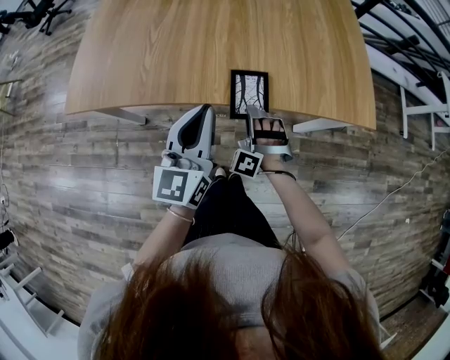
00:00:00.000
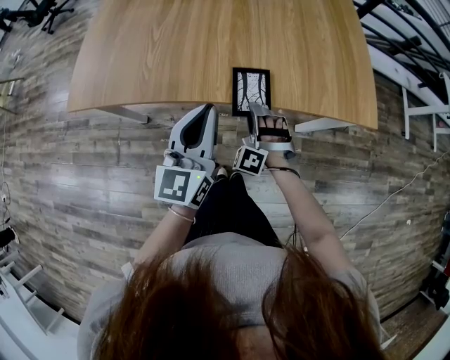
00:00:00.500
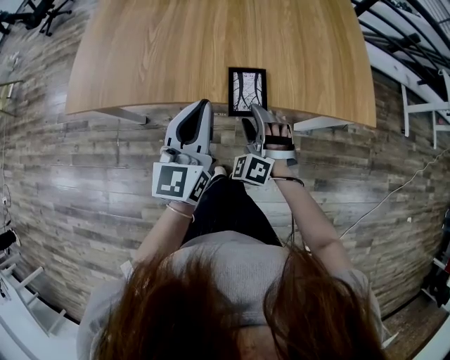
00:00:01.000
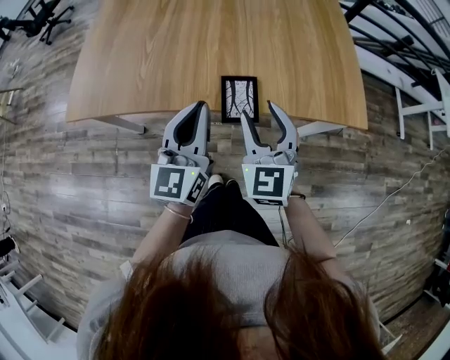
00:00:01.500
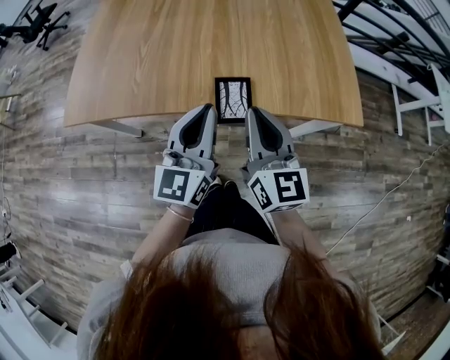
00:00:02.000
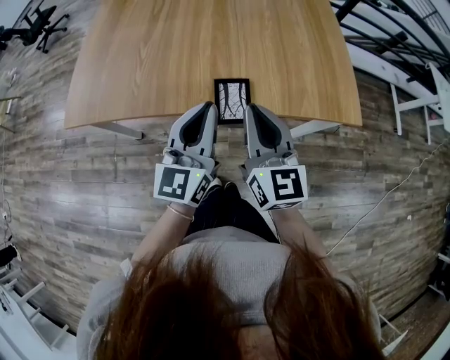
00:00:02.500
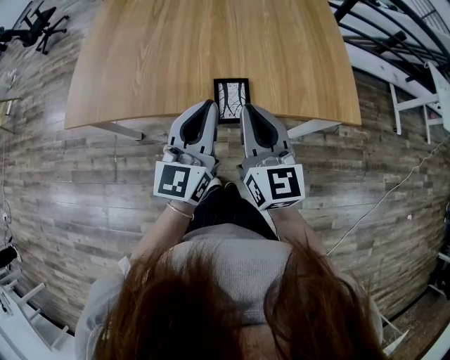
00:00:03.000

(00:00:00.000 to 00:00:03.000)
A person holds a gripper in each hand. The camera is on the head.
00:00:00.000 - 00:00:01.500: The right gripper travels upward by about 20 cm, rotates around the line of its fingers by some 60 degrees, clockwise from behind, and opens its fingers.
00:00:01.500 - 00:00:03.000: The right gripper rotates approximately 30 degrees, and closes its fingers.

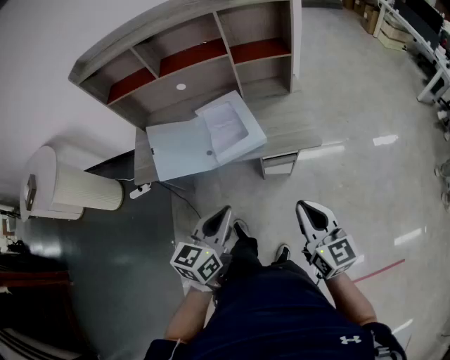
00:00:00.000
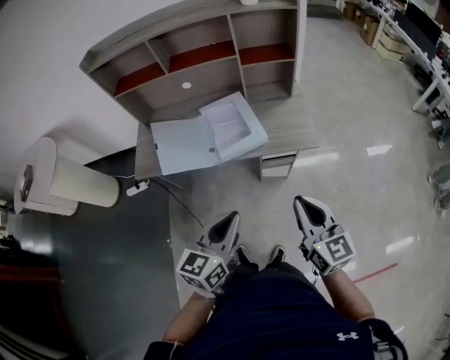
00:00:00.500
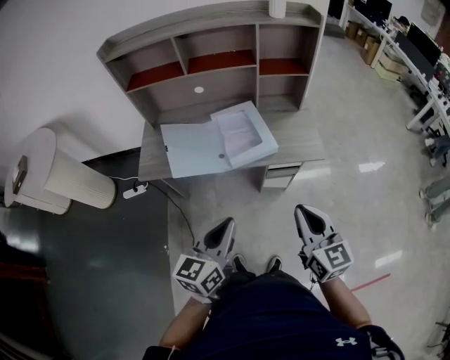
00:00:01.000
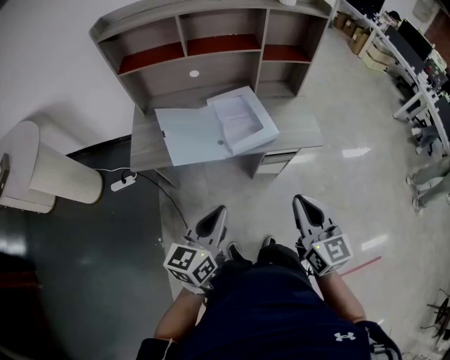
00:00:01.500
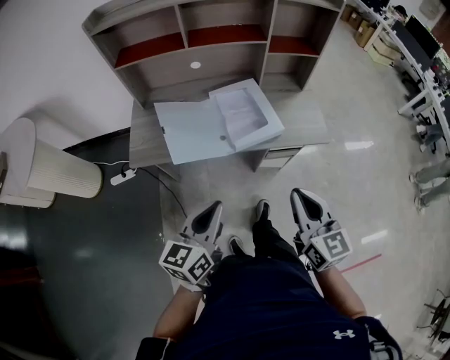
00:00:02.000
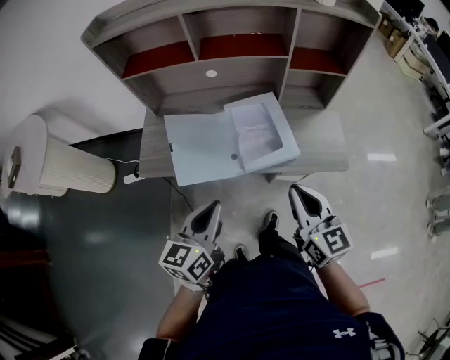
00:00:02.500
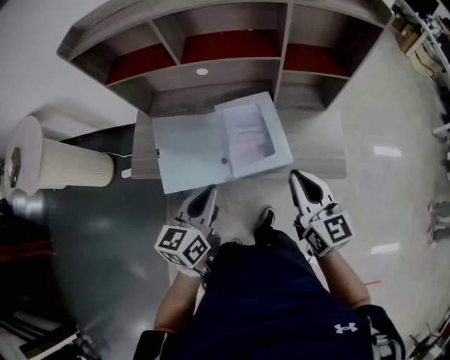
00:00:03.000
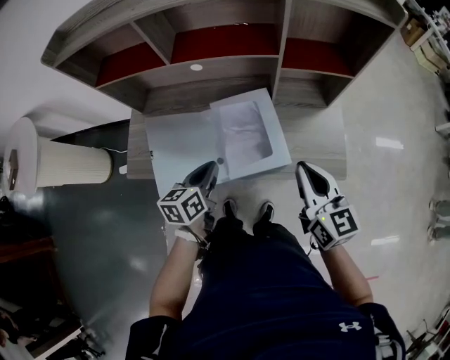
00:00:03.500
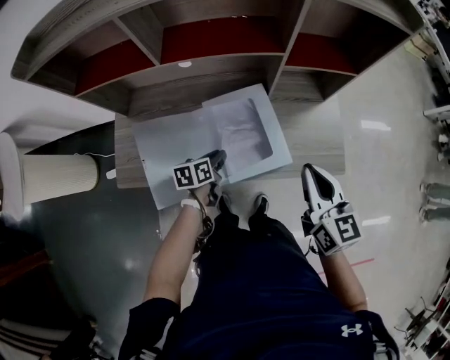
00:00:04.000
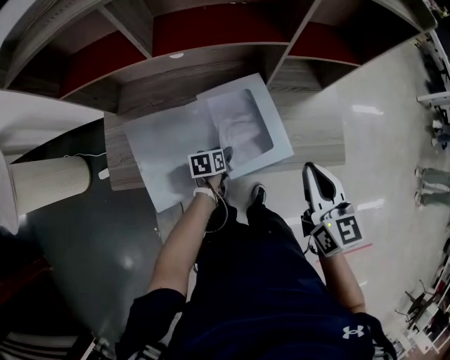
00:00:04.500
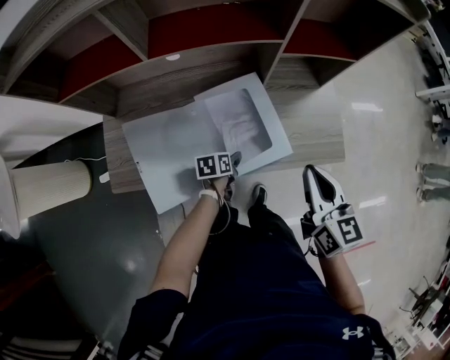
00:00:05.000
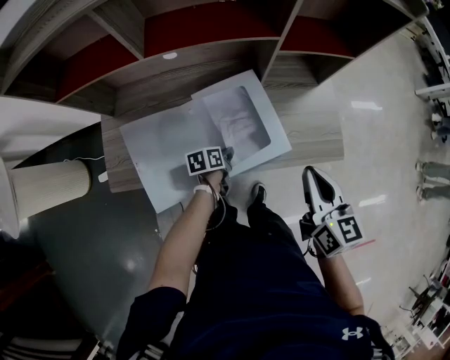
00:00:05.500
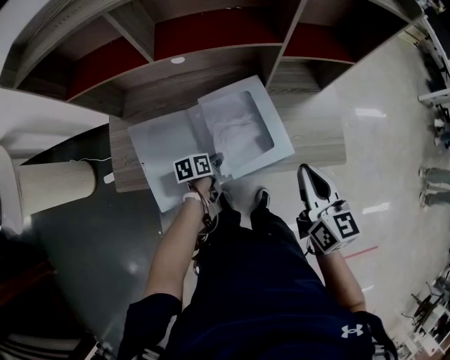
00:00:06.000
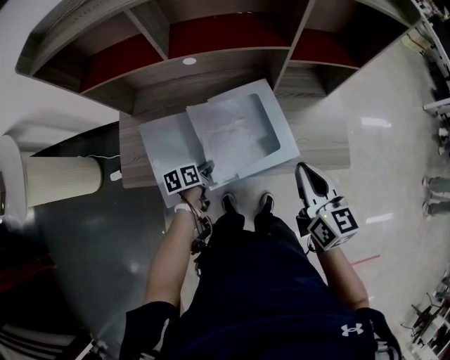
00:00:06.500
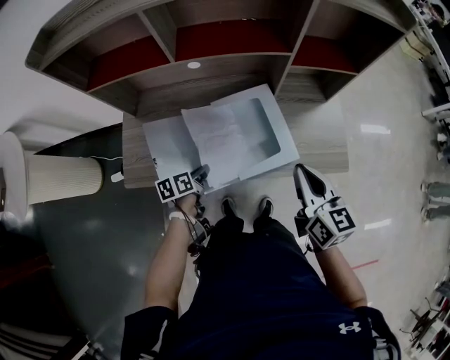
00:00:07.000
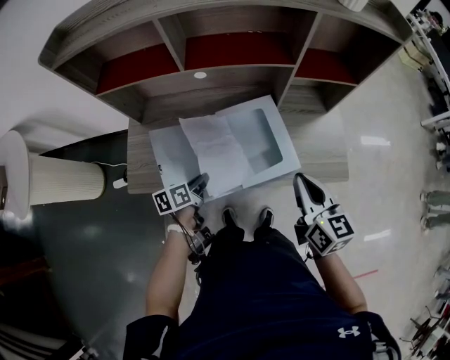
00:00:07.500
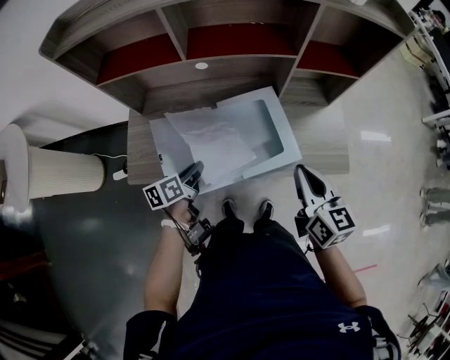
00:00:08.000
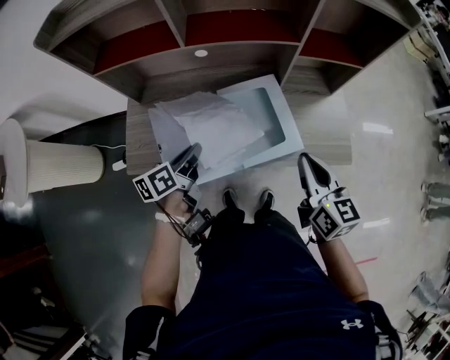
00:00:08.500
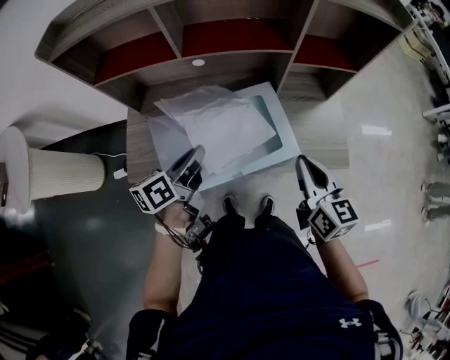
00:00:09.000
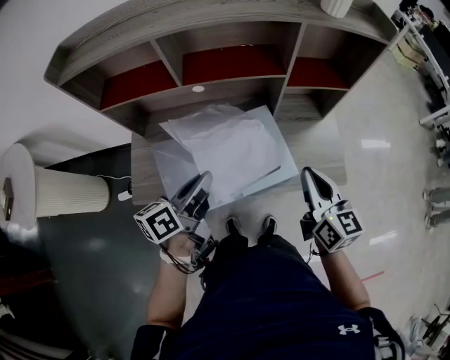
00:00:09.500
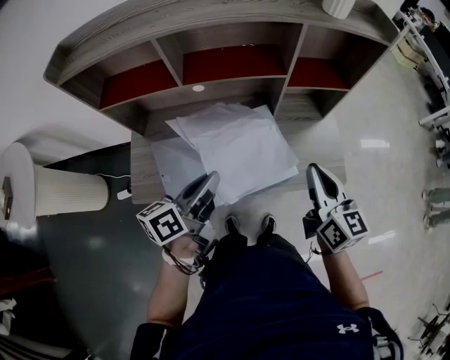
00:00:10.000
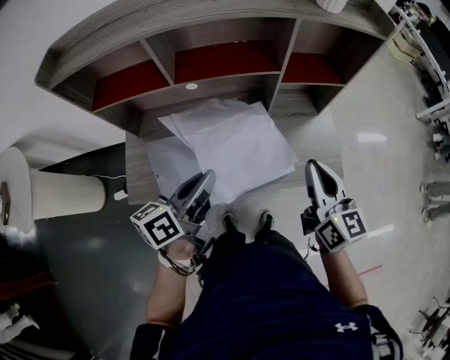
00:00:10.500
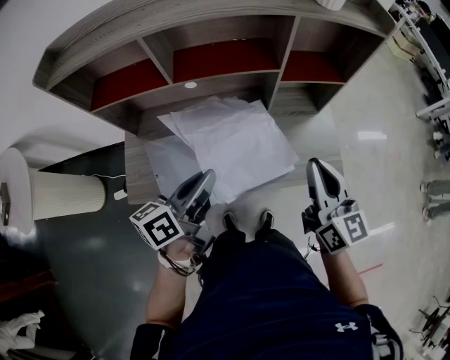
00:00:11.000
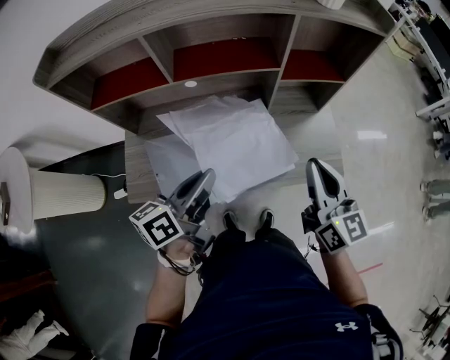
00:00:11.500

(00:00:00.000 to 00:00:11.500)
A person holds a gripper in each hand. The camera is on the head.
00:00:00.000 - 00:00:02.000: The two grippers go roughly 15 cm to the left.
00:00:02.000 - 00:00:04.000: The left gripper travels forward and downward by roughly 40 cm, and swivels about 40 degrees. The right gripper goes some 30 cm forward.
00:00:04.000 - 00:00:06.000: The left gripper moves downward, about 5 cm, and opens, then closes once more.
00:00:06.000 - 00:00:07.500: The left gripper moves upward, to the left and backward, some 15 cm.
00:00:07.500 - 00:00:09.500: The left gripper goes about 20 cm upward, and changes its angle by some 30 degrees. The right gripper shifts by some 5 cm.
00:00:09.500 - 00:00:11.500: There are only small adjustments of the grippers.

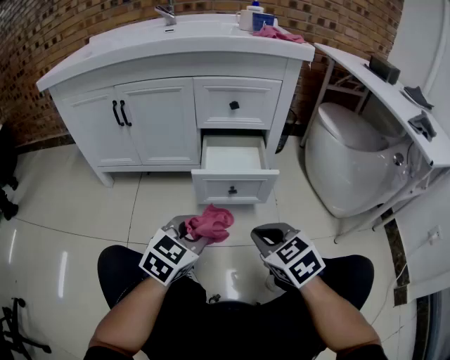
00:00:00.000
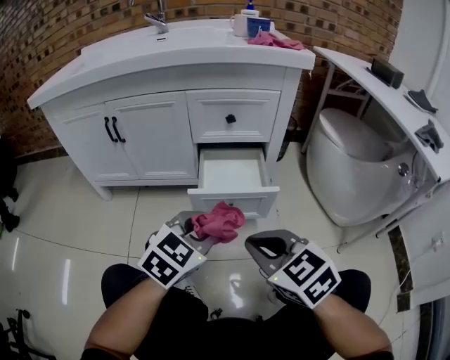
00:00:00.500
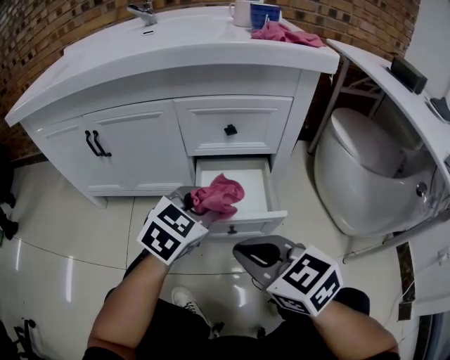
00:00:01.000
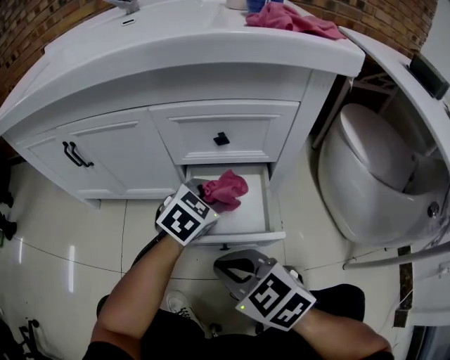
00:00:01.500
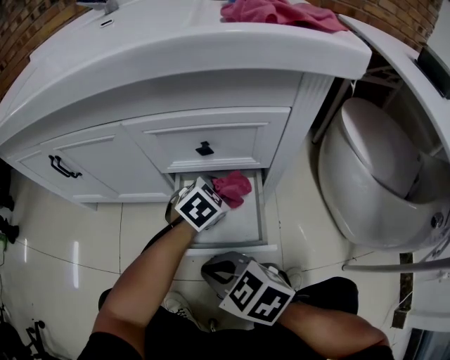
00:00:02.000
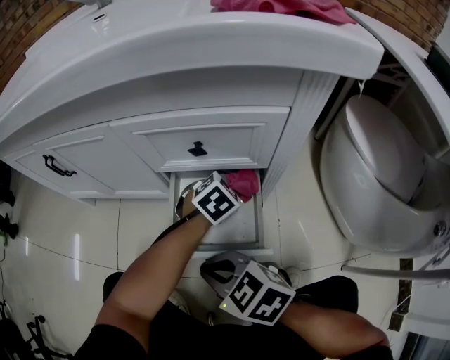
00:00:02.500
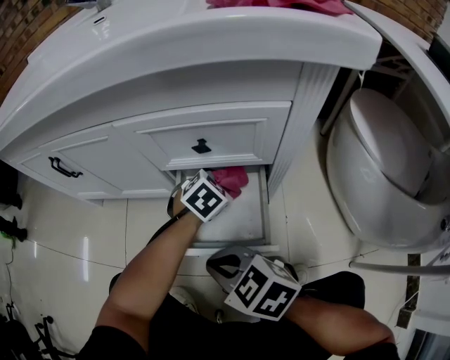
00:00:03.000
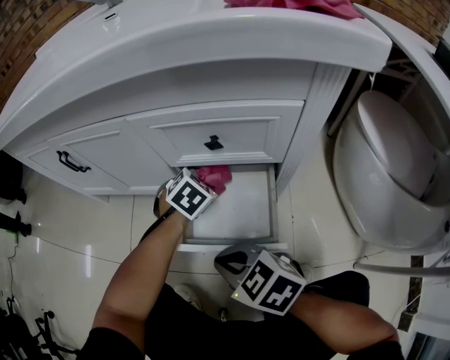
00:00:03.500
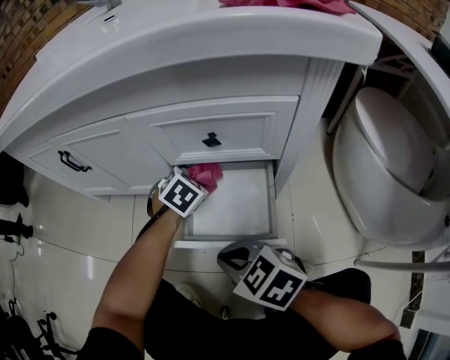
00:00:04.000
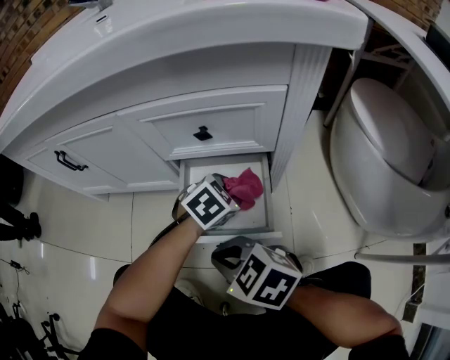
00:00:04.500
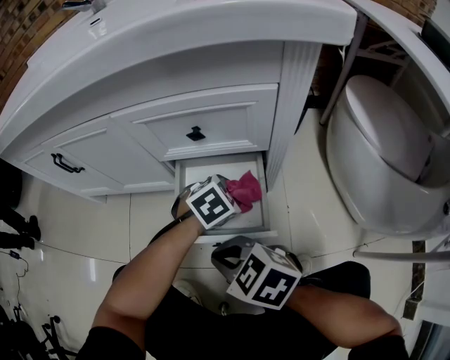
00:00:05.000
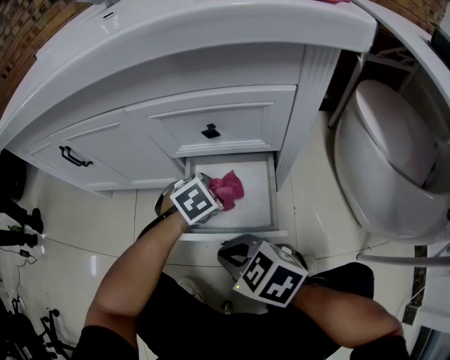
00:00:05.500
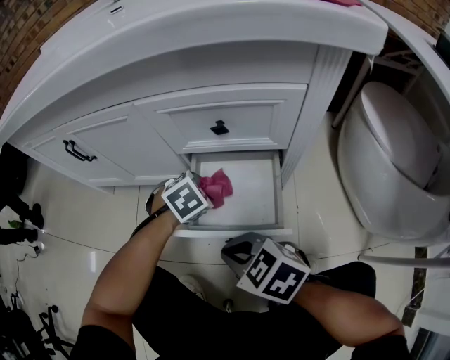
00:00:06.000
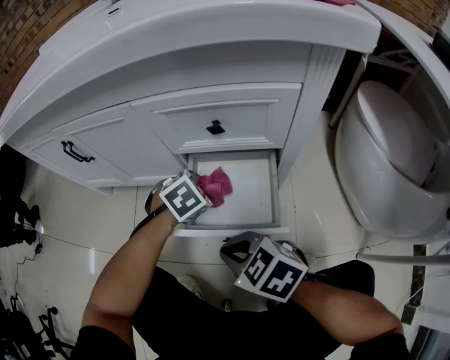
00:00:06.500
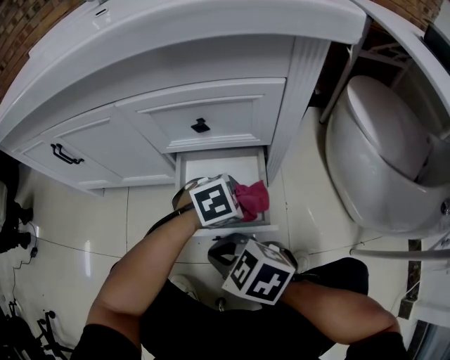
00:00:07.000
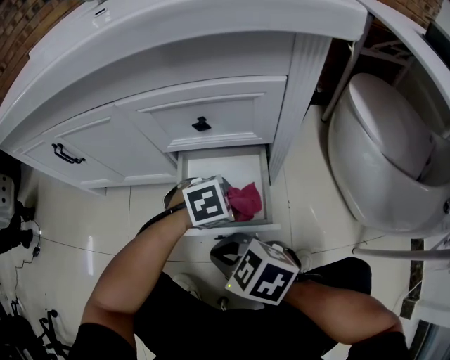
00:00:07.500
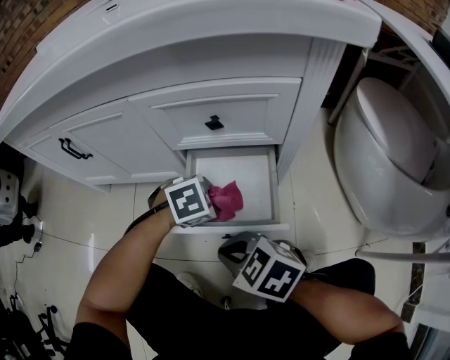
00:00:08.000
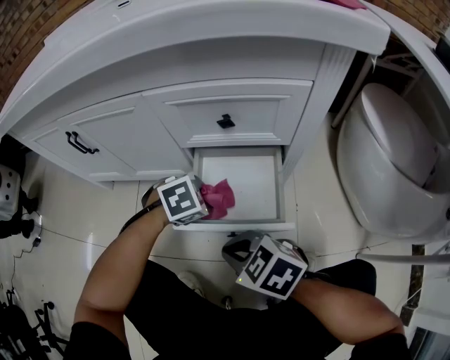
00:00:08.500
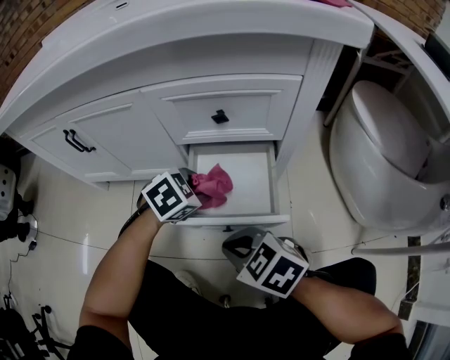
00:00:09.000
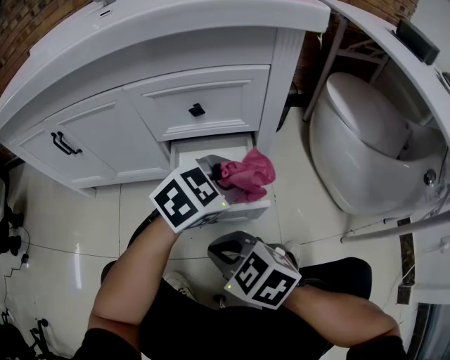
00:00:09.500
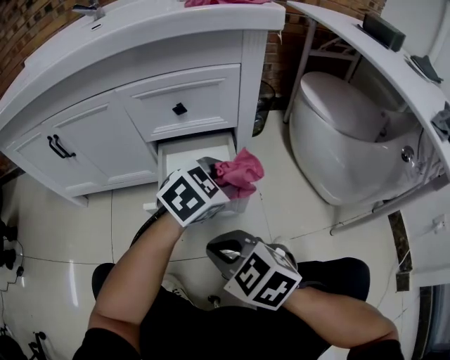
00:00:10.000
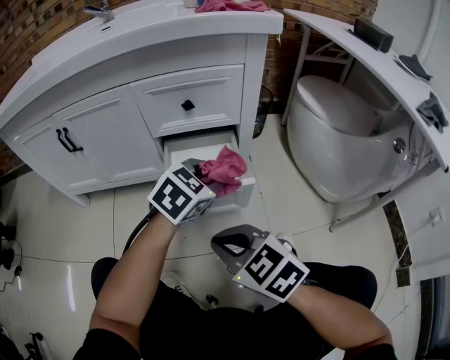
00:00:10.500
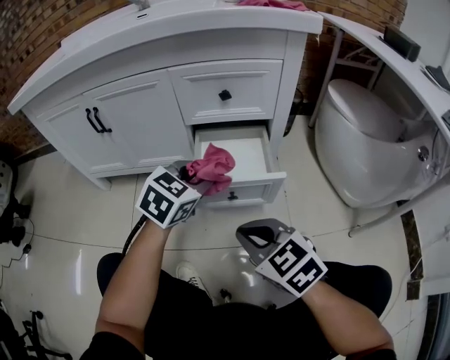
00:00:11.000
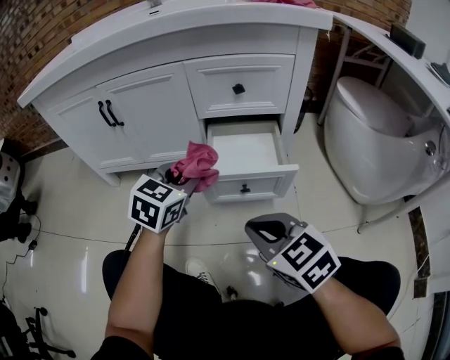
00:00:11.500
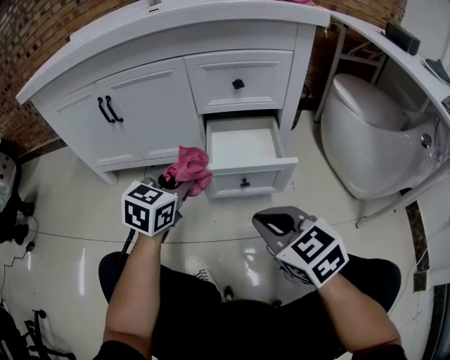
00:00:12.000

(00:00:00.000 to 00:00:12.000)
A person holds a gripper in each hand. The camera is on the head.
00:00:00.000 - 00:00:02.000: The right gripper goes roughly 15 cm forward, and rotates about 30 degrees. The left gripper goes some 35 cm forward and to the right, and rotates roughly 20 degrees.
00:00:02.000 - 00:00:04.000: The left gripper is displaced to the left and forward by approximately 10 cm.
00:00:08.000 - 00:00:10.000: The right gripper ends up about 10 cm from where it was; the left gripper moves some 20 cm, and swivels approximately 30 degrees.
00:00:10.000 - 00:00:12.000: The left gripper travels to the left by some 25 cm, and changes its angle by some 40 degrees.
